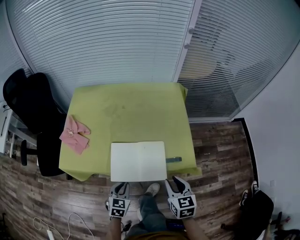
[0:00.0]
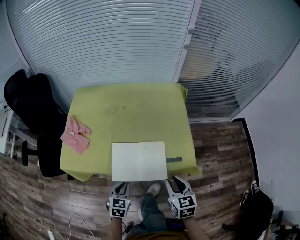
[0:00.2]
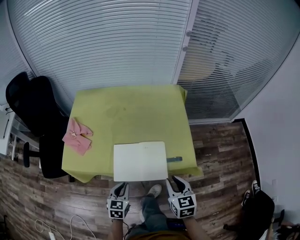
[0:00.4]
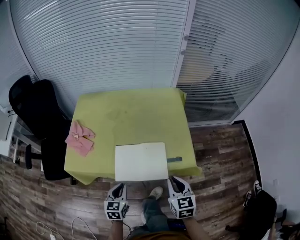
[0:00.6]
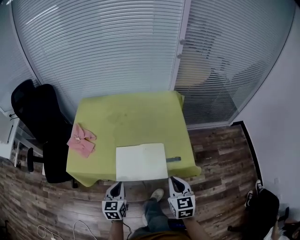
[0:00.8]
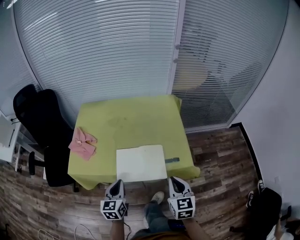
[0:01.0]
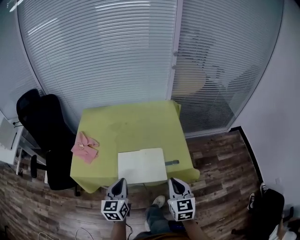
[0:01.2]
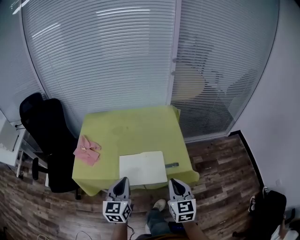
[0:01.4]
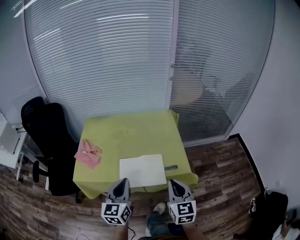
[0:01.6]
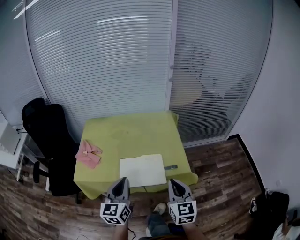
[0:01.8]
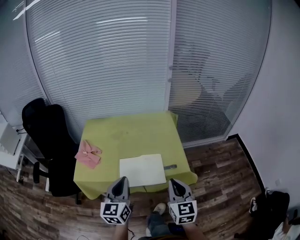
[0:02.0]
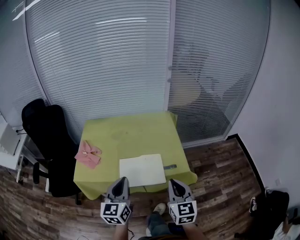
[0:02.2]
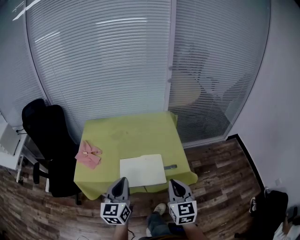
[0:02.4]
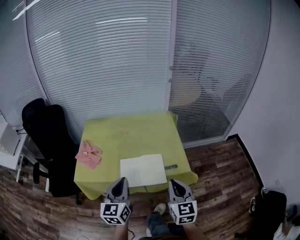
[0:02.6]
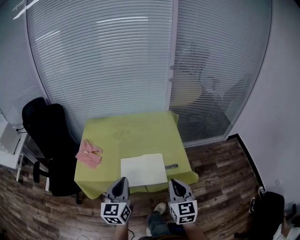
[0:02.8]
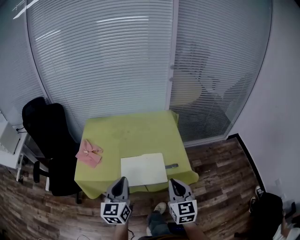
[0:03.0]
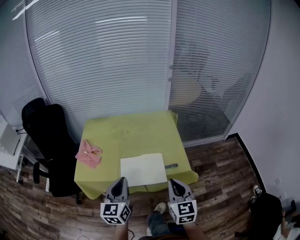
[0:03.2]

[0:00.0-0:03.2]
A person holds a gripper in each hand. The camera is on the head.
0:00.0 to 0:01.6: The left gripper goes some 25 cm upward, and tilts its fingers some 30 degrees upward. The right gripper shifts some 15 cm upward, turns by some 20 degrees, and closes its fingers.
0:01.6 to 0:03.2: There are only small adjustments of the grippers.

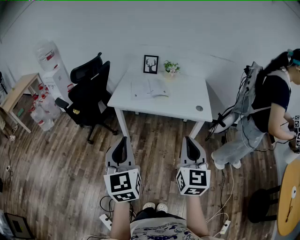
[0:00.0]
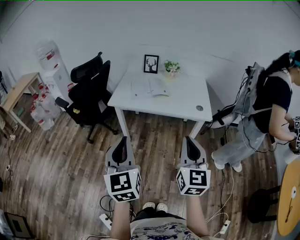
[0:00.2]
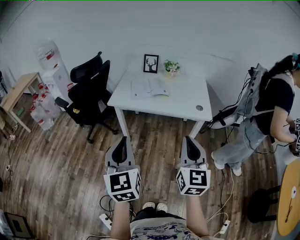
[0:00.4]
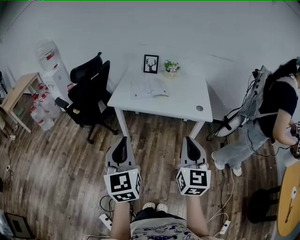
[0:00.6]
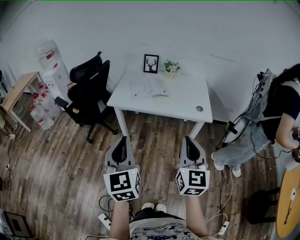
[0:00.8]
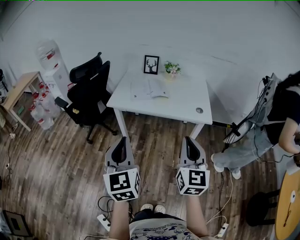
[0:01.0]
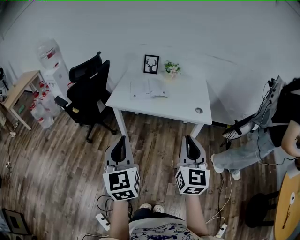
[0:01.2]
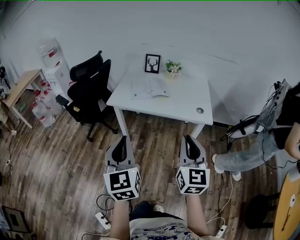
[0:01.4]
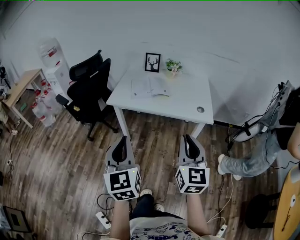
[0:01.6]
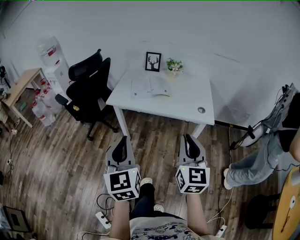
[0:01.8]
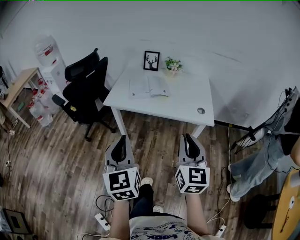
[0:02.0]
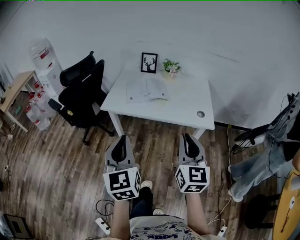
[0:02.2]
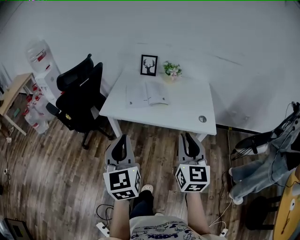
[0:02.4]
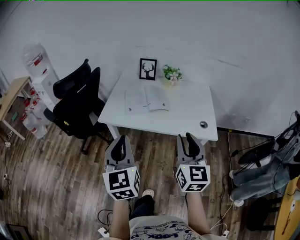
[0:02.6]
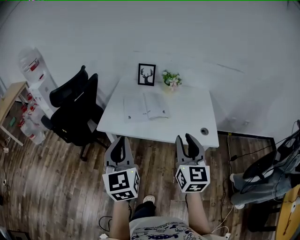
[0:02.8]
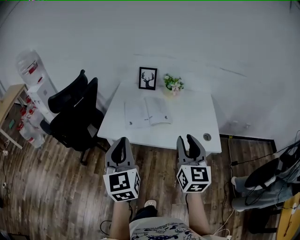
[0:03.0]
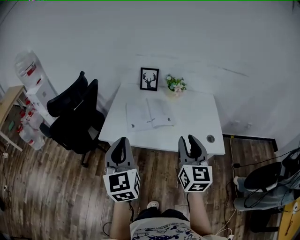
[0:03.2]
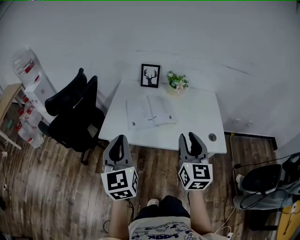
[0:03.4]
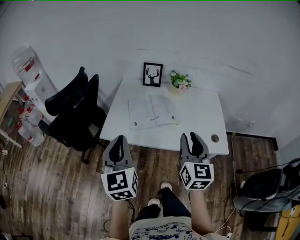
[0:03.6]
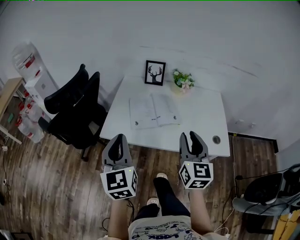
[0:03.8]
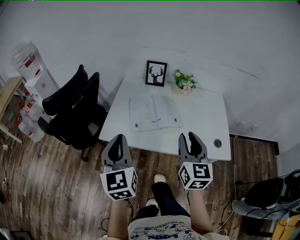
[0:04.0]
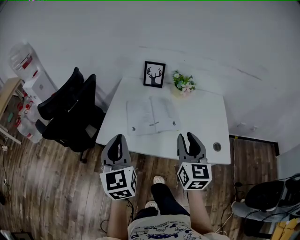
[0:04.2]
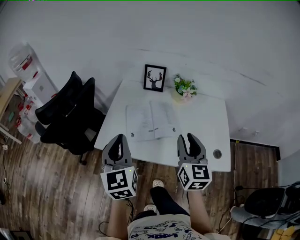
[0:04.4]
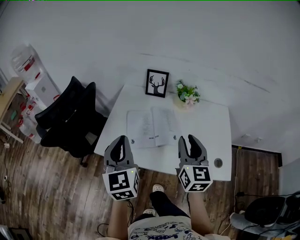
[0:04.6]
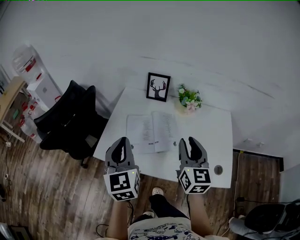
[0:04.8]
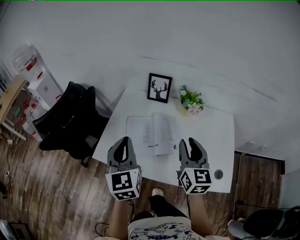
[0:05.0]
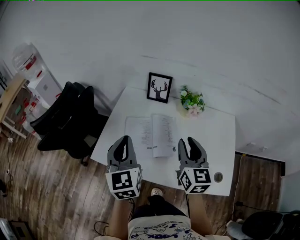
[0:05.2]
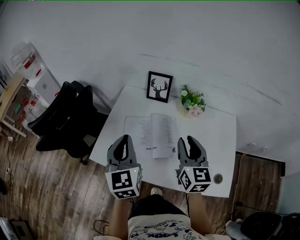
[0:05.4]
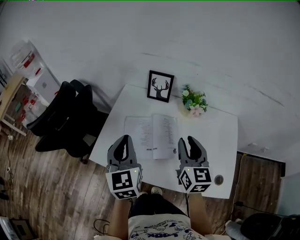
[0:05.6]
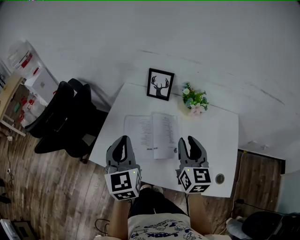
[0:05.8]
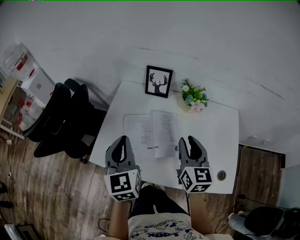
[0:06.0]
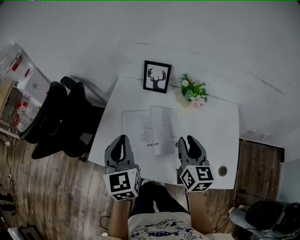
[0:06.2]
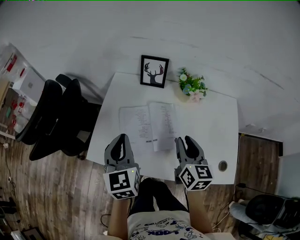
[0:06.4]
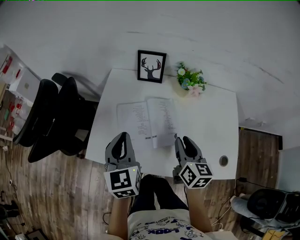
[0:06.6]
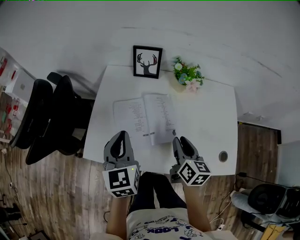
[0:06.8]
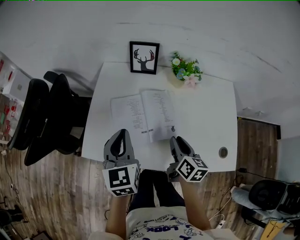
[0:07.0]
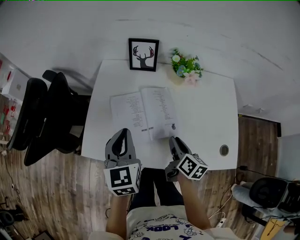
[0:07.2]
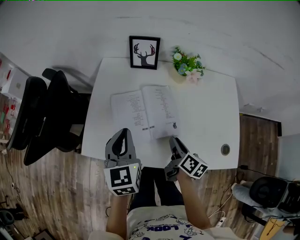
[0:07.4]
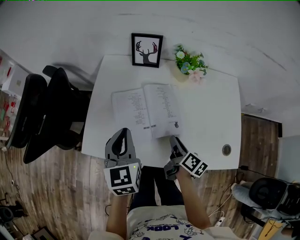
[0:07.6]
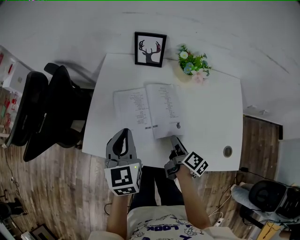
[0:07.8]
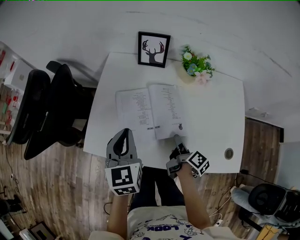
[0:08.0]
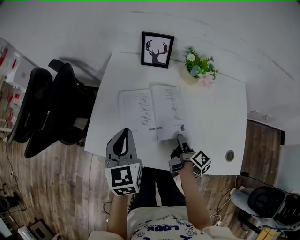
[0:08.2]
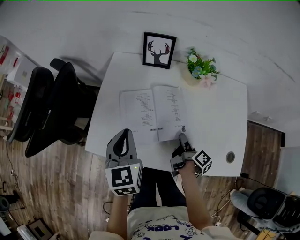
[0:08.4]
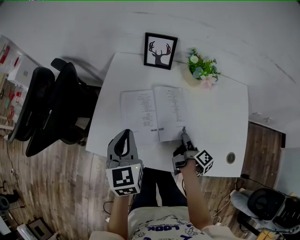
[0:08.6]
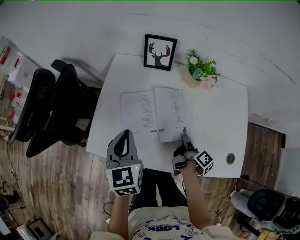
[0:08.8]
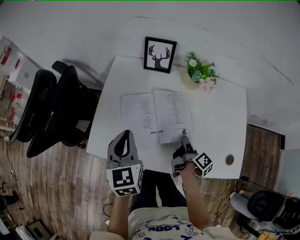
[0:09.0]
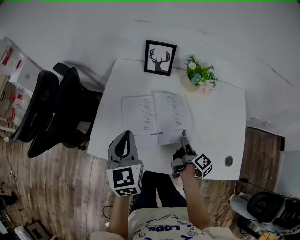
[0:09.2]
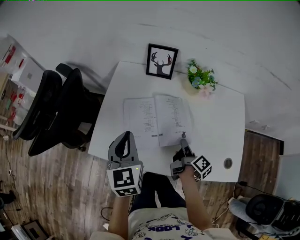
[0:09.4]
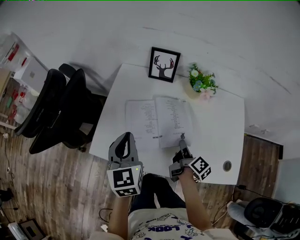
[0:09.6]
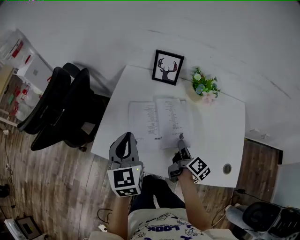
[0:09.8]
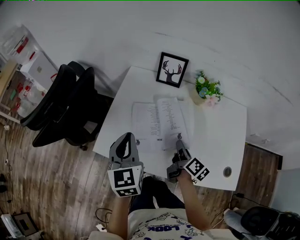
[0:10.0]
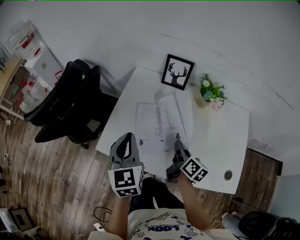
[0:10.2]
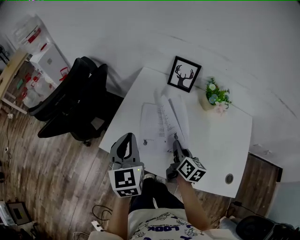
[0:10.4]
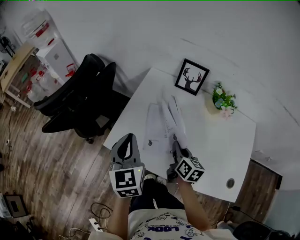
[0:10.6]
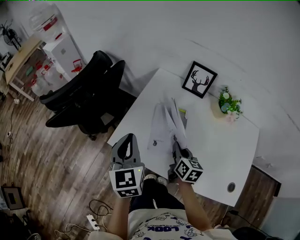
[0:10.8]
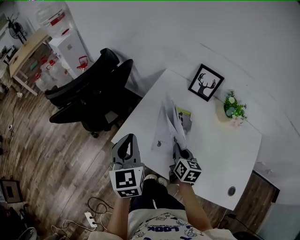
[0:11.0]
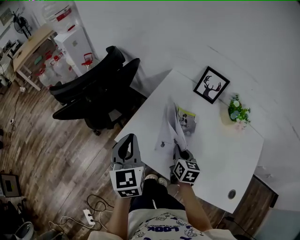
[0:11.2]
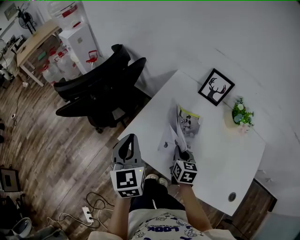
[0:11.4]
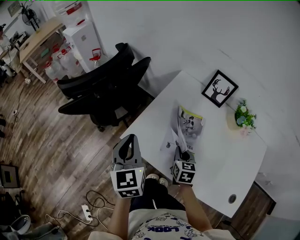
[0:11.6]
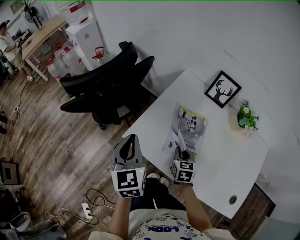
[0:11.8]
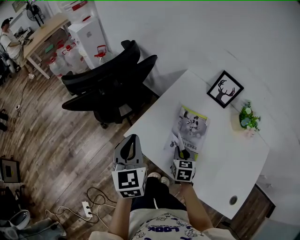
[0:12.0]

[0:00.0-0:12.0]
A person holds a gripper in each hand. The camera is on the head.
0:00.0 to 0:01.6: The grippers move only a little.
0:01.6 to 0:03.0: The two grippers go some 30 cm forward.
0:03.0 to 0:04.4: Both grippers travel together forward, roughly 20 cm.
0:04.4 to 0:06.0: Both grippers travel together forward, approximately 15 cm.
0:06.0 to 0:07.6: The right gripper shifts approximately 20 cm downward, and twists approximately 50 degrees clockwise, seen from behind, while the left gripper travels downward by about 10 cm.
0:07.6 to 0:09.0: The right gripper turns by some 30 degrees.
0:09.0 to 0:10.4: The left gripper heads to the left, covering about 5 cm. Meanwhile the right gripper is displaced to the left and upward by some 15 cm, and rotates around the line of its fingers by about 50 degrees, counterclockwise from behind.
0:10.4 to 0:12.0: The left gripper goes approximately 15 cm to the left. Meanwhile the right gripper travels to the left and downward by approximately 15 cm, and rolls counterclockwise, seen from behind, by some 40 degrees.

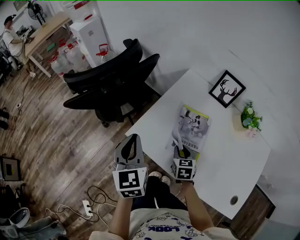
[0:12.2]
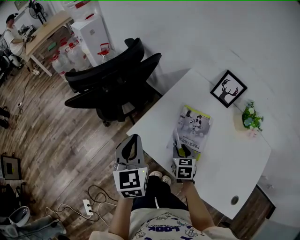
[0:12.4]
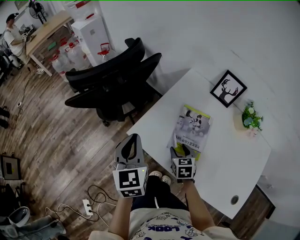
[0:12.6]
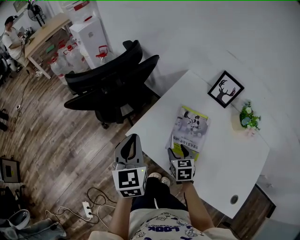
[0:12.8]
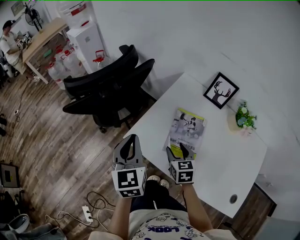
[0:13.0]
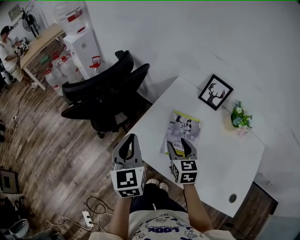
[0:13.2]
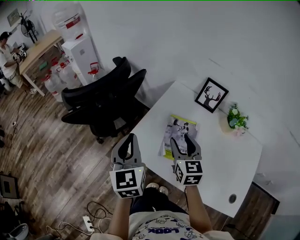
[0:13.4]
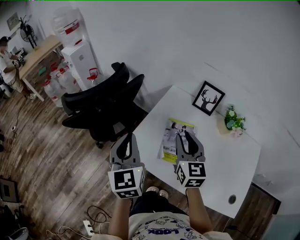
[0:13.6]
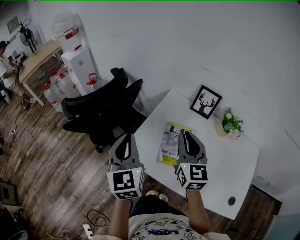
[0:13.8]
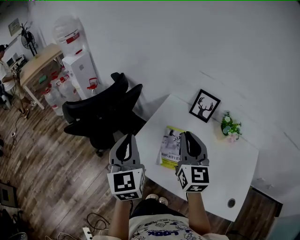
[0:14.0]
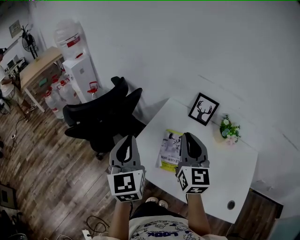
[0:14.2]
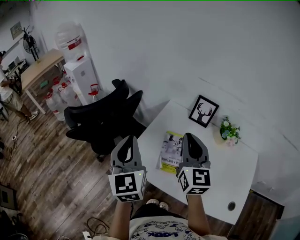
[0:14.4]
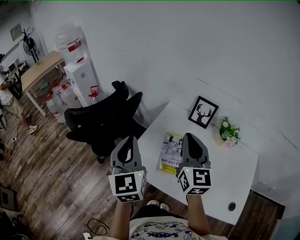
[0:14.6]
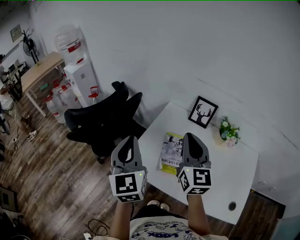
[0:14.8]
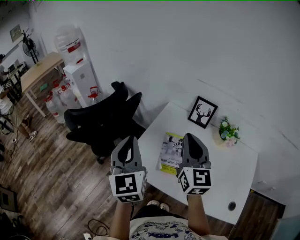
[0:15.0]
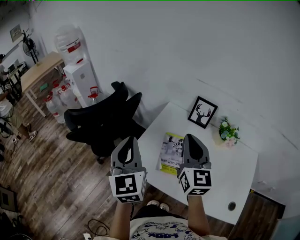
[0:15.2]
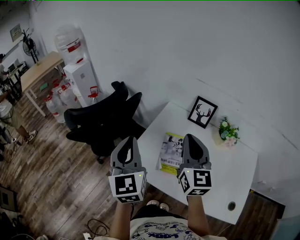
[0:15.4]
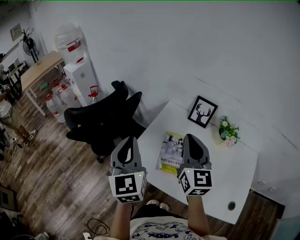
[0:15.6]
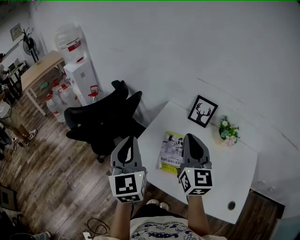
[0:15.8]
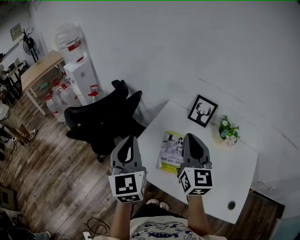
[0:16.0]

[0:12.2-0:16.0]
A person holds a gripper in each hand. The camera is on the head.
0:12.2 to 0:13.4: The left gripper heads upward, covering roughly 5 cm; the right gripper shifts some 20 cm upward, turns by approximately 20 degrees, and opens.
0:13.4 to 0:14.8: The left gripper moves upward, roughly 10 cm. Meanwhile the right gripper shifts approximately 15 cm upward, rotates about 20 degrees, and closes up.
0:14.8 to 0:16.0: Both grippers stay about where they are.

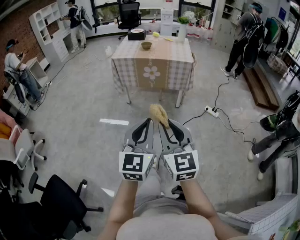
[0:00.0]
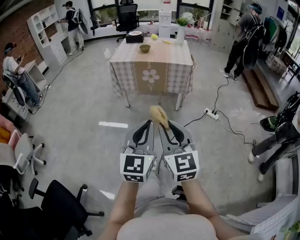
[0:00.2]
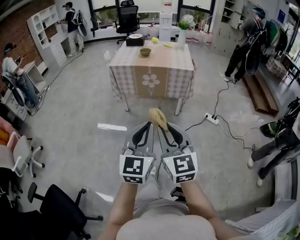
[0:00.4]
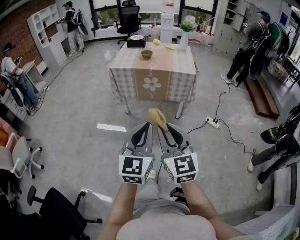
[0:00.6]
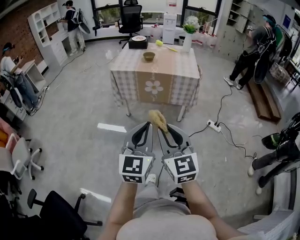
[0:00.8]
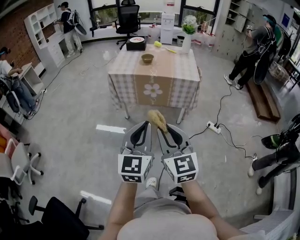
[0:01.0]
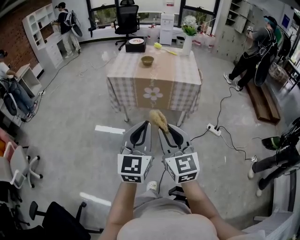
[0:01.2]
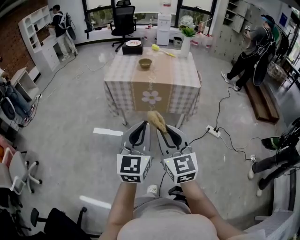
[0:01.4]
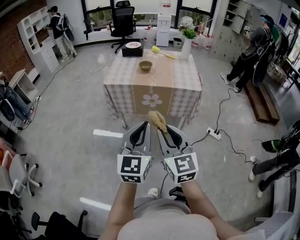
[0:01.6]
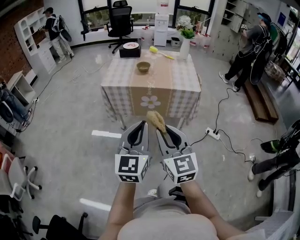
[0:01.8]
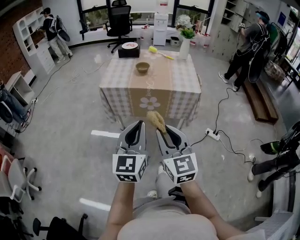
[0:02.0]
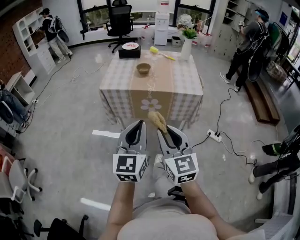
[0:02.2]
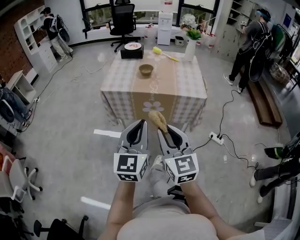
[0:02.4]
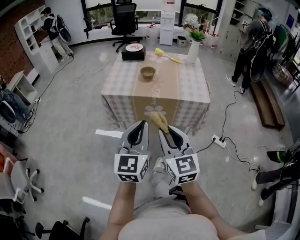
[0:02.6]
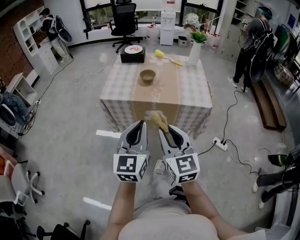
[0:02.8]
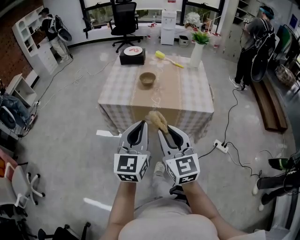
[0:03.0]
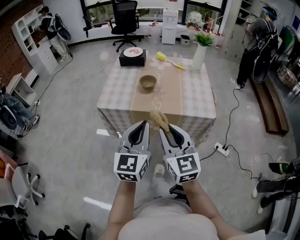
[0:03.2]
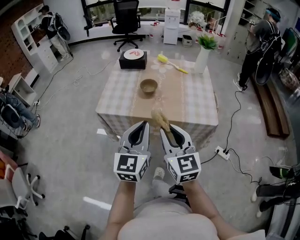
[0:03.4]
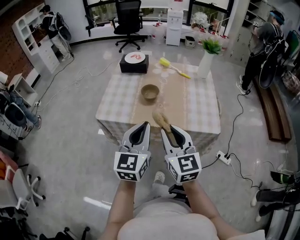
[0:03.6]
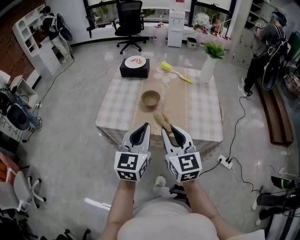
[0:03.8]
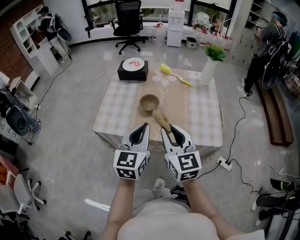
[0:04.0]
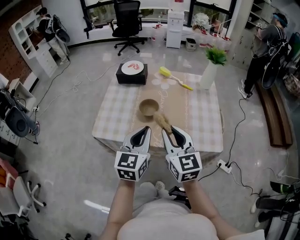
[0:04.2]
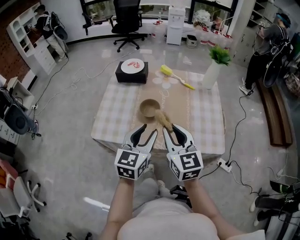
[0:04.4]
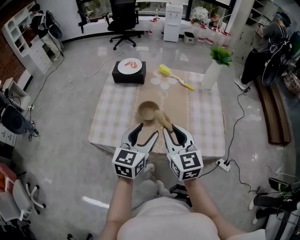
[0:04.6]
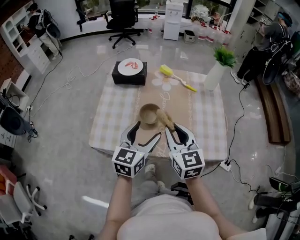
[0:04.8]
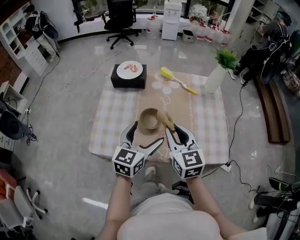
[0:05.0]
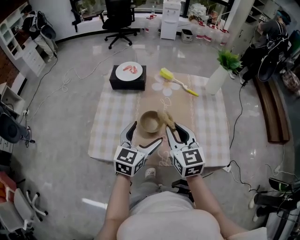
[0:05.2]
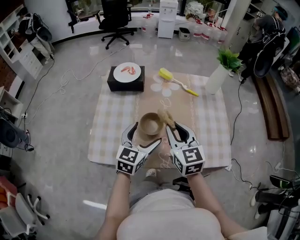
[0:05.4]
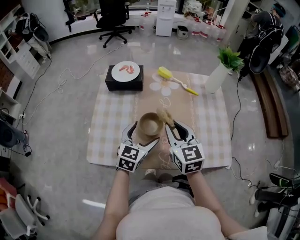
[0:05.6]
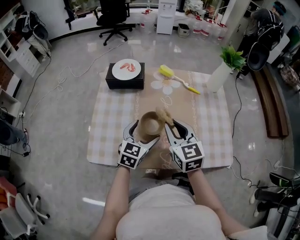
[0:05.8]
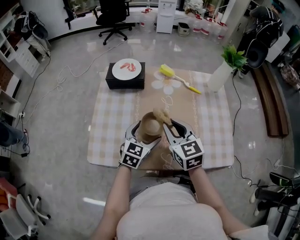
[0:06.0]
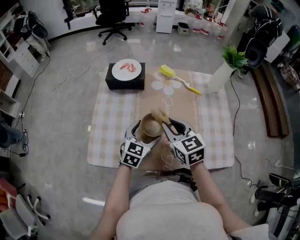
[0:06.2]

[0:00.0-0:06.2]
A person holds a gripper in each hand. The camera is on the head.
0:00.0 to 0:01.6: Both grippers travel together forward, some 30 cm.
0:01.6 to 0:03.2: The two grippers go about 25 cm forward.
0:03.2 to 0:04.6: Both grippers travel together forward, some 25 cm. The left gripper opens up.
0:04.6 to 0:06.2: The right gripper goes roughly 15 cm forward and downward. Meanwhile the left gripper travels downward and forward by some 20 cm, rotates roughly 20 degrees, and opens.
